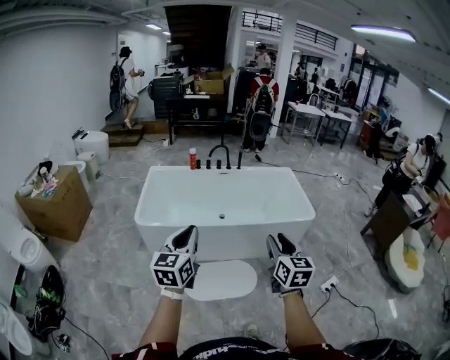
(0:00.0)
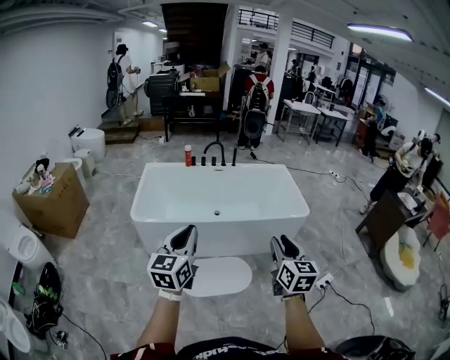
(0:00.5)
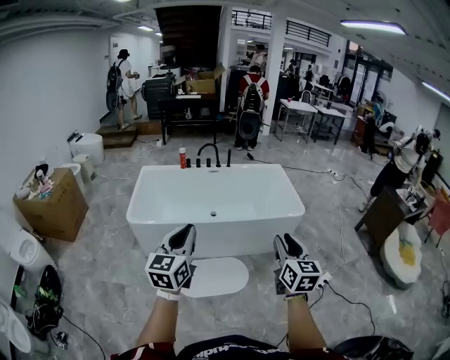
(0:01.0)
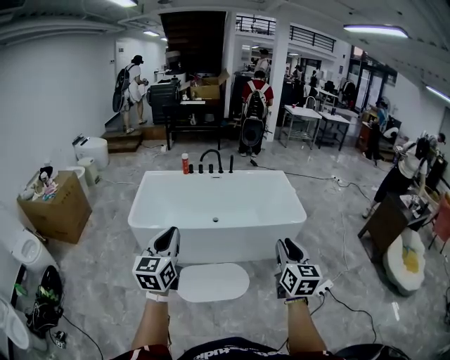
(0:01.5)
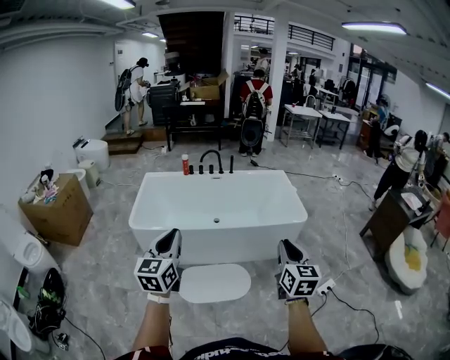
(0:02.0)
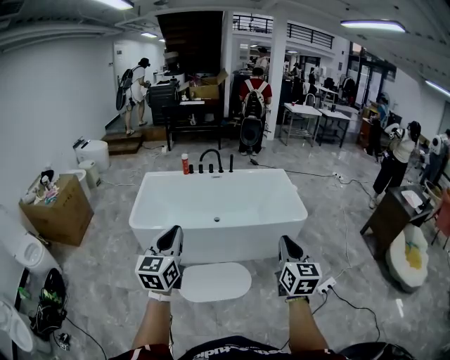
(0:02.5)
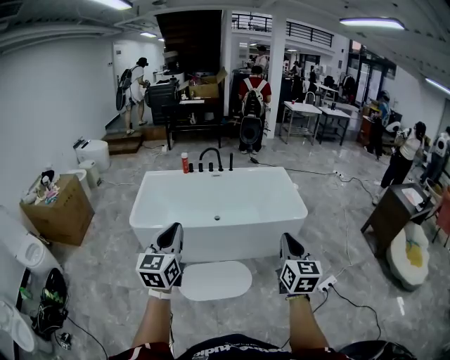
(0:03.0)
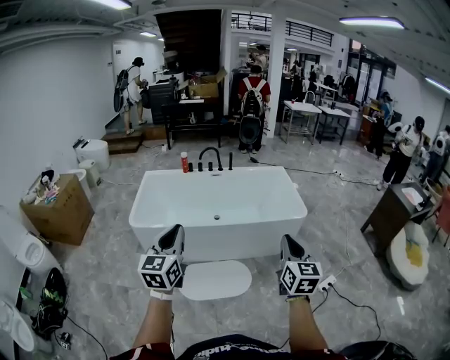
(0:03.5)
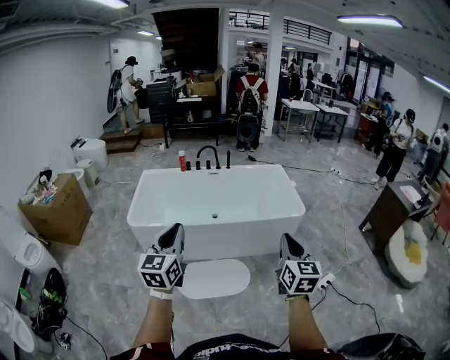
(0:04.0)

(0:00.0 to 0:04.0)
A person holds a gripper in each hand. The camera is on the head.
0:00.0 - 0:02.0: The left gripper travels to the right by about 5 cm. Meanwhile the right gripper travels to the right by roughly 15 cm, and closes up.
0:02.0 - 0:04.0: The grippers stay close to where they were, moving slightly.

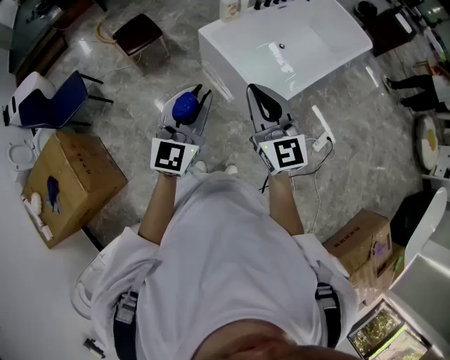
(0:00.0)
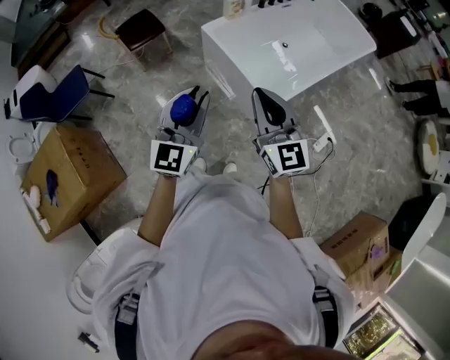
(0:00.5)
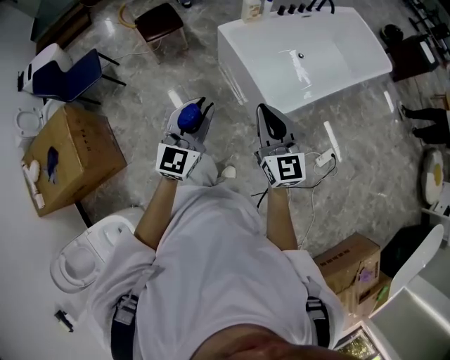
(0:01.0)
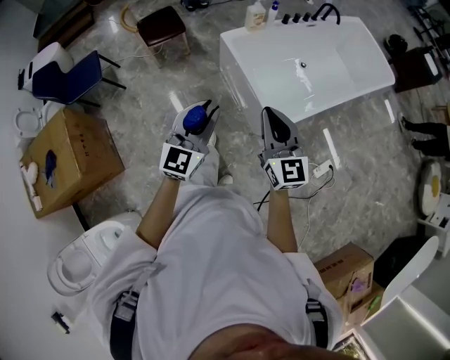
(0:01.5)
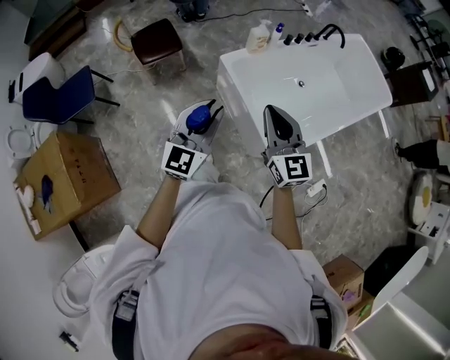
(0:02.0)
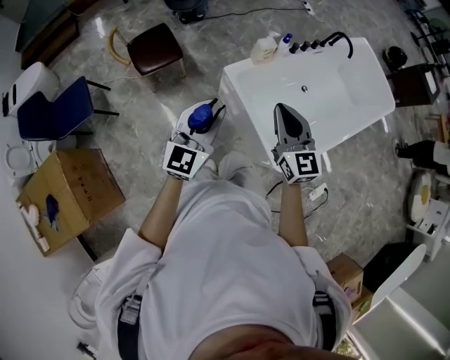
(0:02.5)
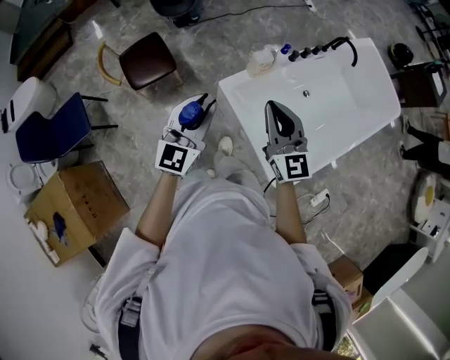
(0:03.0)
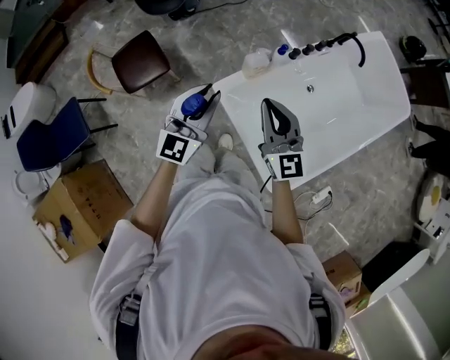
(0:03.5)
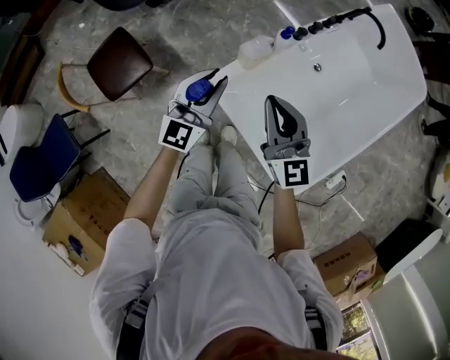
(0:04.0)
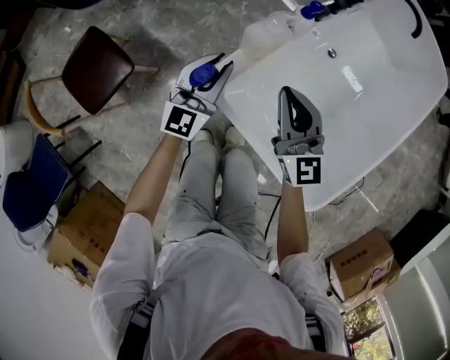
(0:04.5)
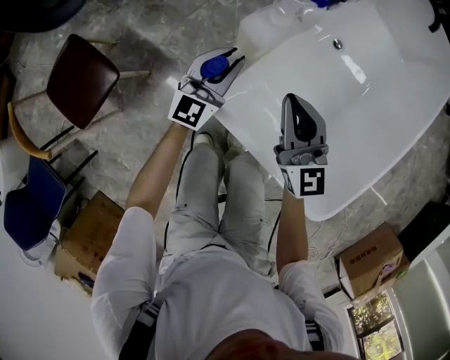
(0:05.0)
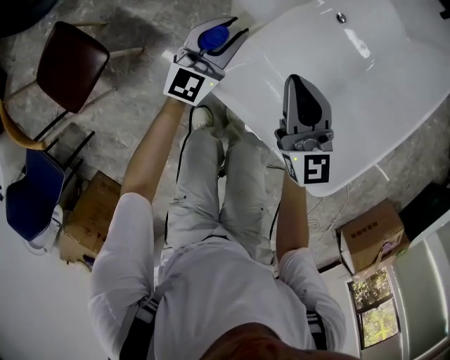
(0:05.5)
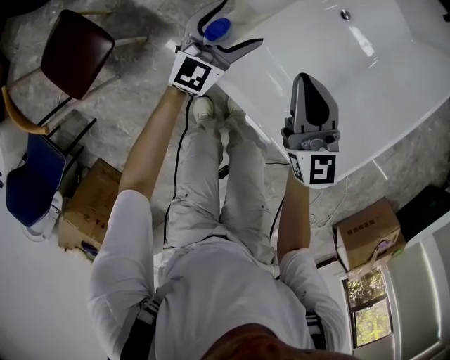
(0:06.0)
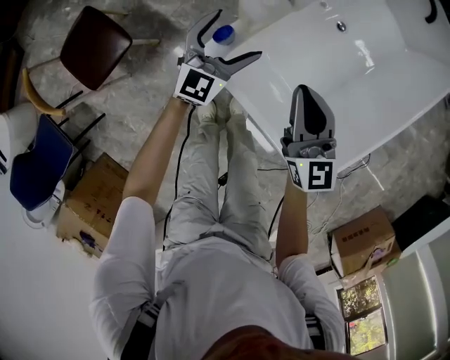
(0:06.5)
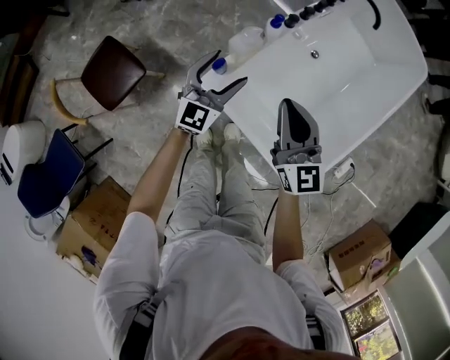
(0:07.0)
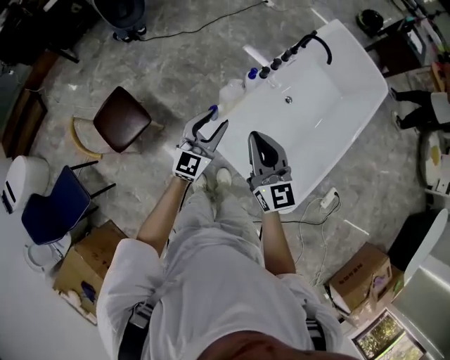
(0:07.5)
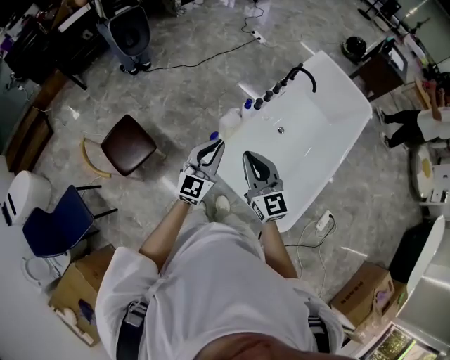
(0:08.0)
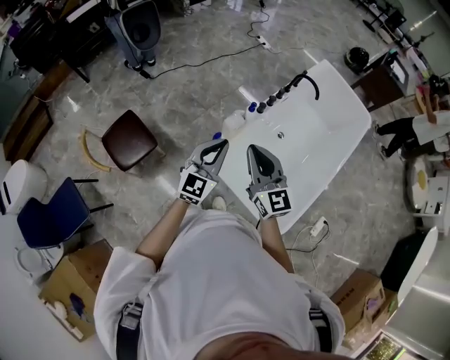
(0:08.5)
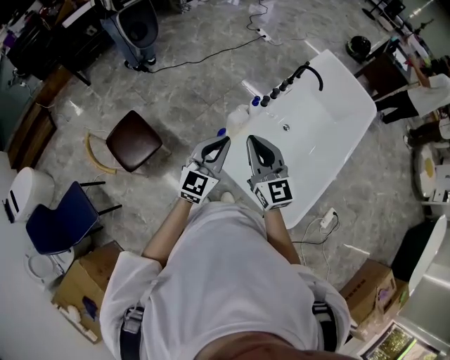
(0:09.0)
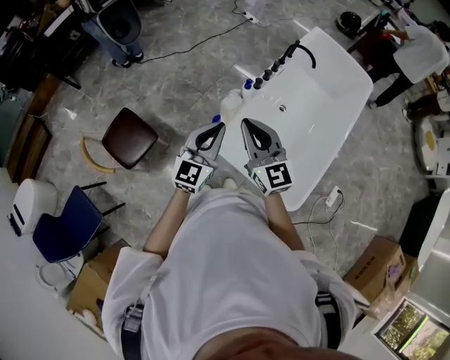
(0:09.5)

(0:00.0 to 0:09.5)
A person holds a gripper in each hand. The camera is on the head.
0:00.0 - 0:02.0: Both grippers travel together forward, about 20 cm.
0:02.0 - 0:04.0: The pair of grippers is taken forward, some 40 cm. Both grippers travel together downward, about 20 cm.
0:04.0 - 0:05.5: Both grippers travel together downward, about 30 cm.
0:05.5 - 0:07.5: The grippers both shift upward by roughly 35 cm. The left gripper opens and closes again.
0:07.5 - 0:09.5: The left gripper goes roughly 10 cm upward, while the right gripper travels upward by about 5 cm.

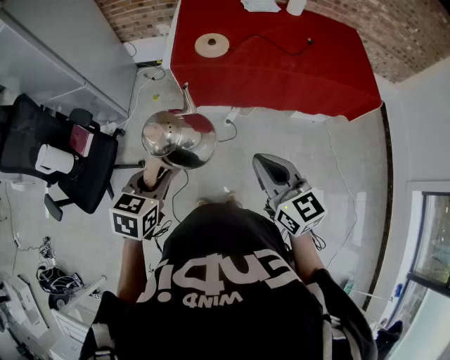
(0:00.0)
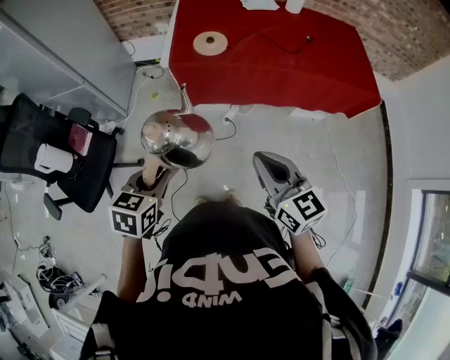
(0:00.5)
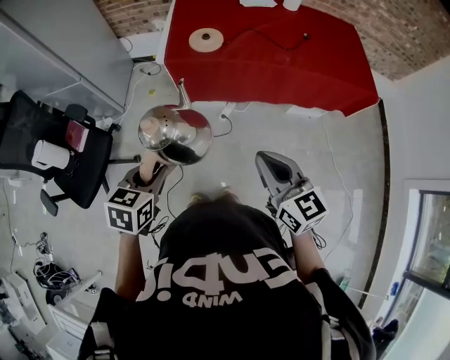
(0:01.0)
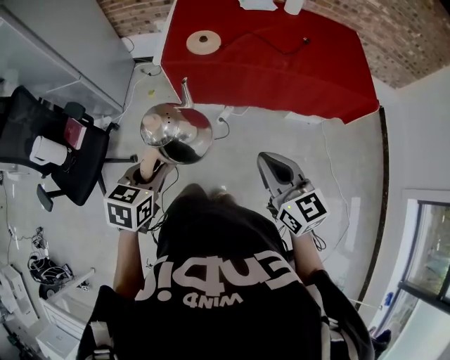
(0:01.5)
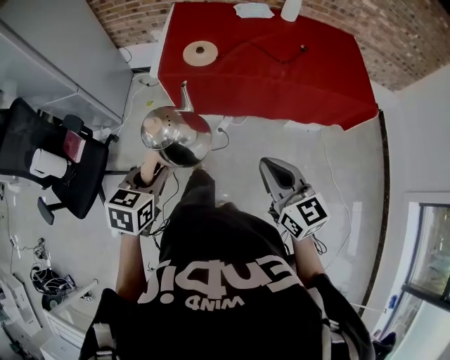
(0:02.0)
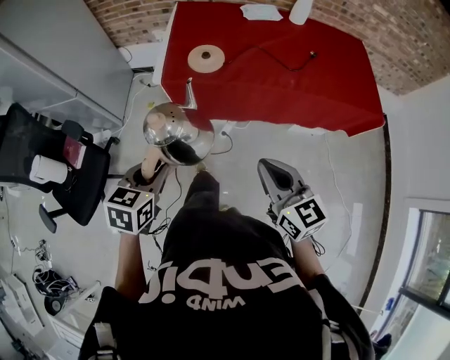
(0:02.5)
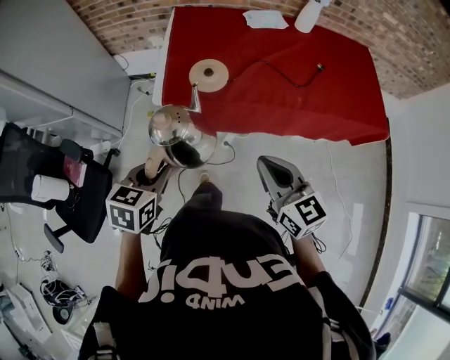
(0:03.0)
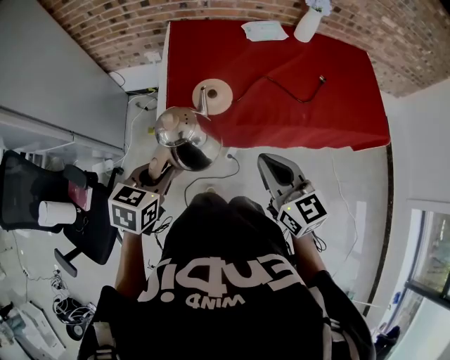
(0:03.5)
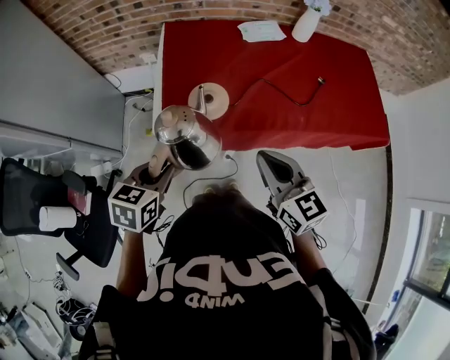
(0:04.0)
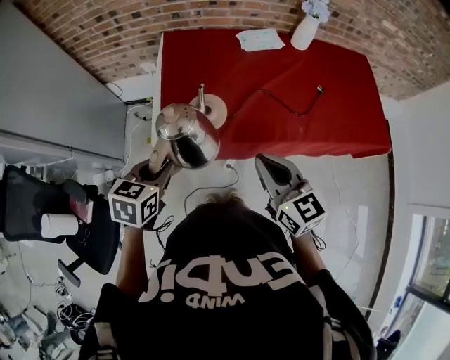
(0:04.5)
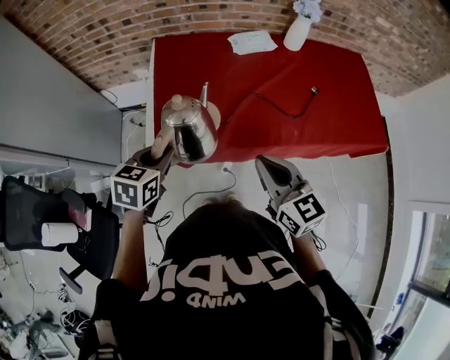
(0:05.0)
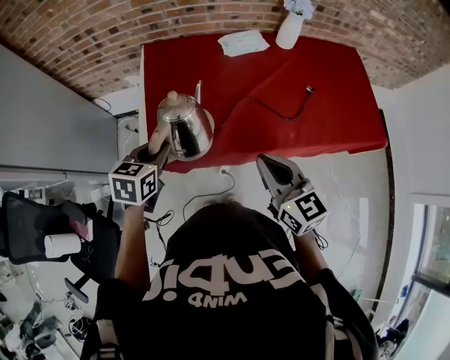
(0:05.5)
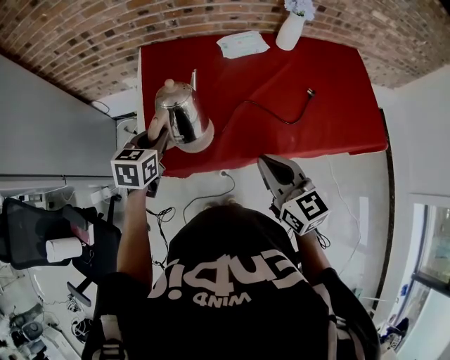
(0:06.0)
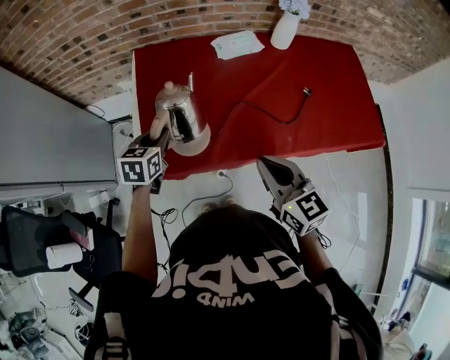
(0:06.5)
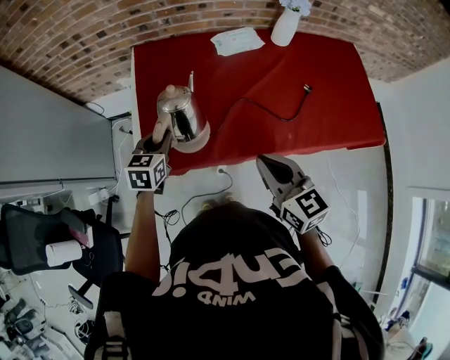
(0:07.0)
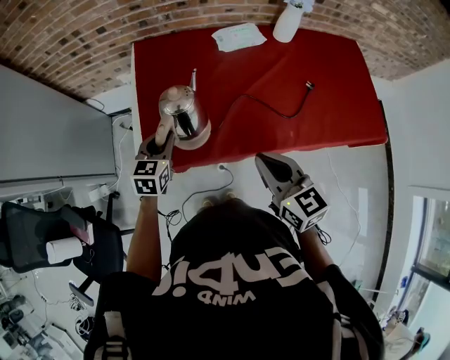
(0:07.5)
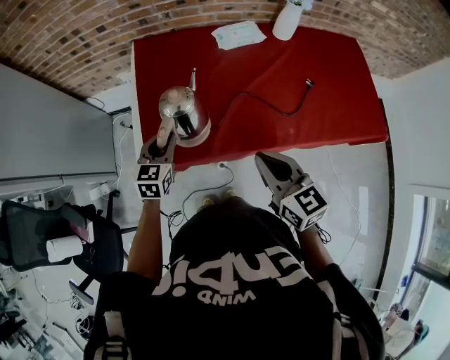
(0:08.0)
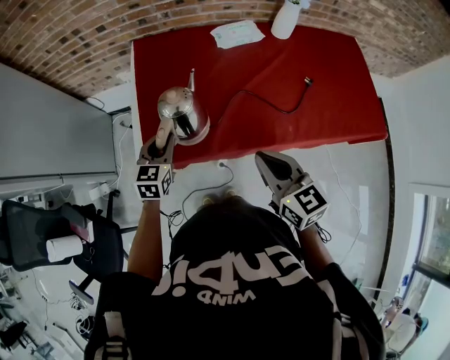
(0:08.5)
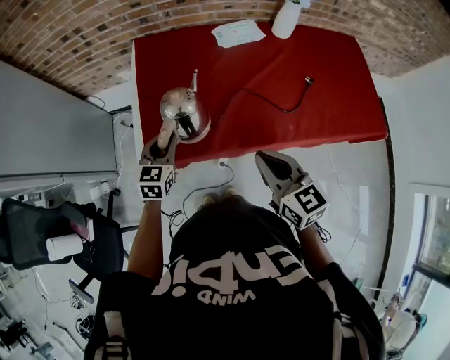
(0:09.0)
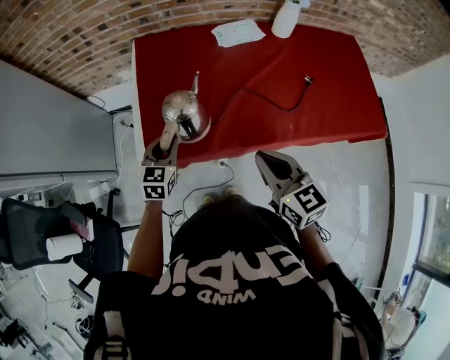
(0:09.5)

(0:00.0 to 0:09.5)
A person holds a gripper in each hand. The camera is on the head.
0:00.0 - 0:02.0: The right gripper moves to the right, some 10 cm; the left gripper travels to the right by about 5 cm.
0:02.0 - 0:04.0: Both grippers travel together forward, some 30 cm.
0:04.0 - 0:05.5: The right gripper travels forward and to the right by some 10 cm. Meanwhile the left gripper is displaced forward by about 15 cm.
0:05.5 - 0:07.5: The left gripper moves downward and forward, approximately 10 cm.
0:07.5 - 0:09.5: The grippers move only a little.

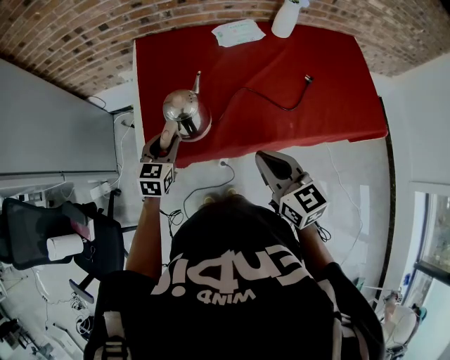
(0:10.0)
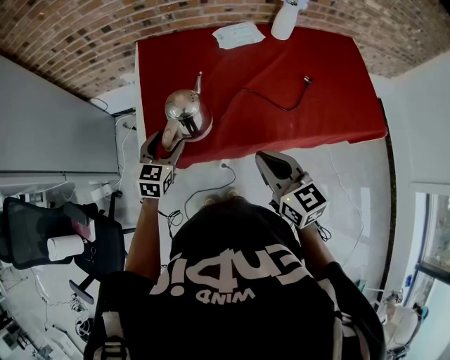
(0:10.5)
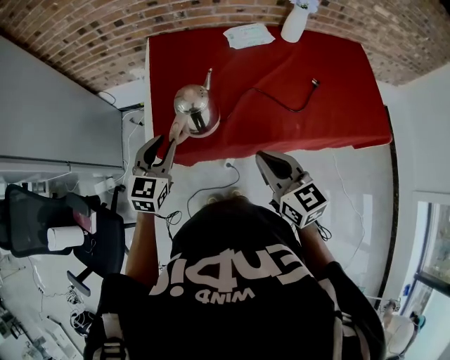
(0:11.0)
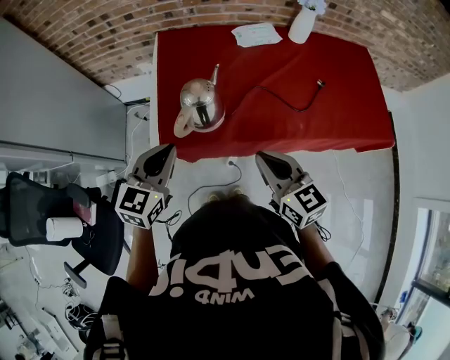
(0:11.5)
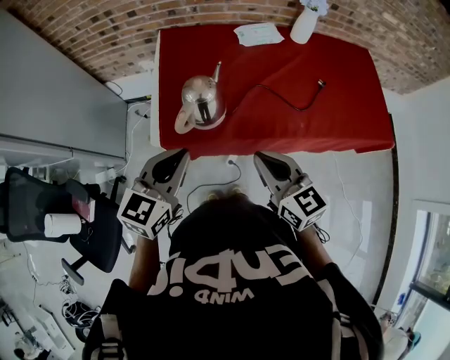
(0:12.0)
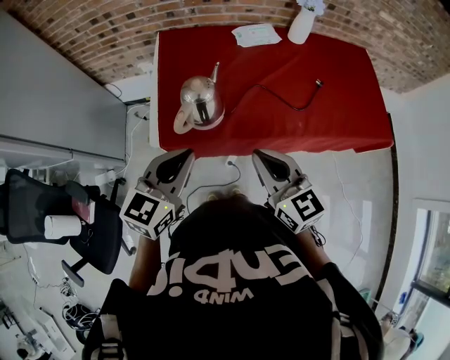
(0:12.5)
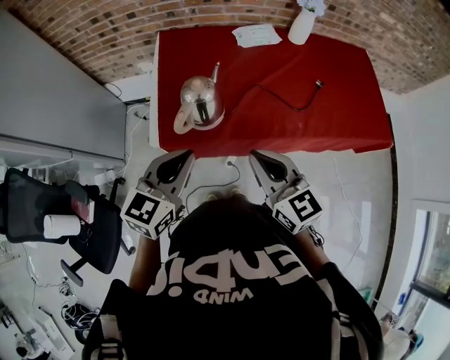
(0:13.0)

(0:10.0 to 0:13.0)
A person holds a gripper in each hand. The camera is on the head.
0:10.0 - 0:11.5: The left gripper goes some 20 cm upward and backward, and closes its fingers.
0:11.5 - 0:13.0: The left gripper changes place by some 5 cm.
